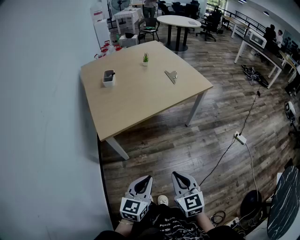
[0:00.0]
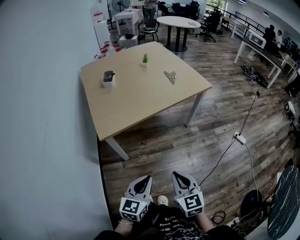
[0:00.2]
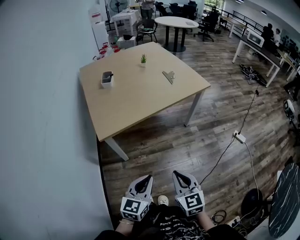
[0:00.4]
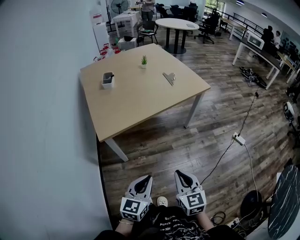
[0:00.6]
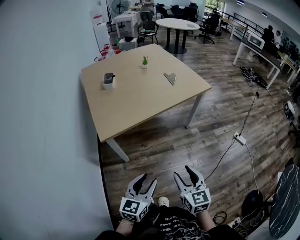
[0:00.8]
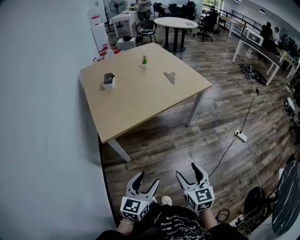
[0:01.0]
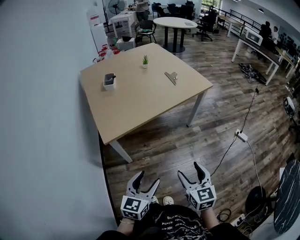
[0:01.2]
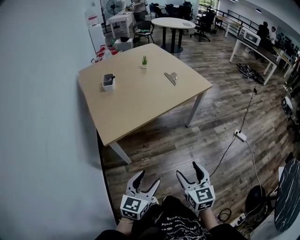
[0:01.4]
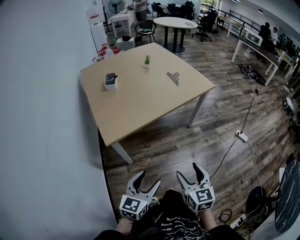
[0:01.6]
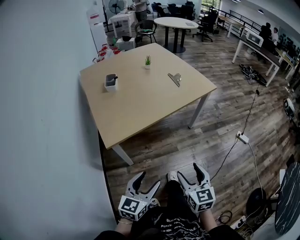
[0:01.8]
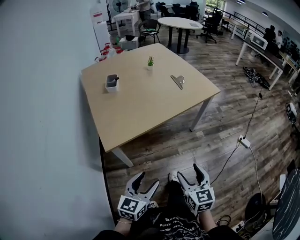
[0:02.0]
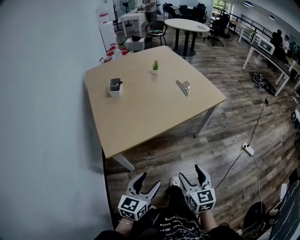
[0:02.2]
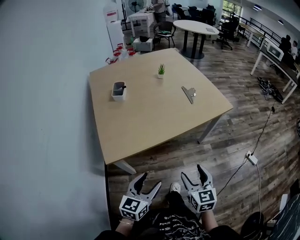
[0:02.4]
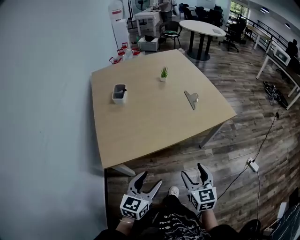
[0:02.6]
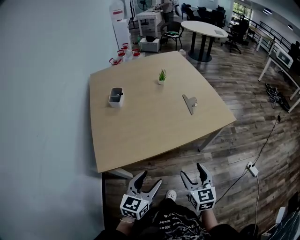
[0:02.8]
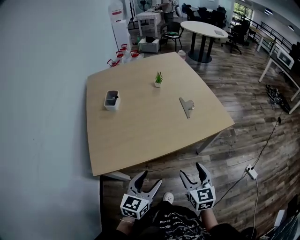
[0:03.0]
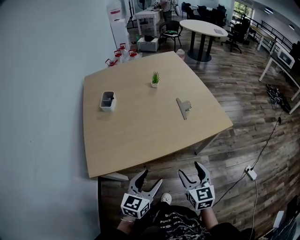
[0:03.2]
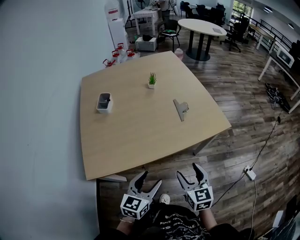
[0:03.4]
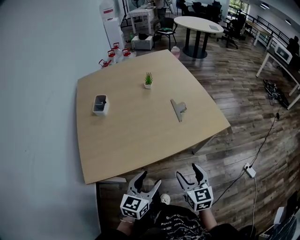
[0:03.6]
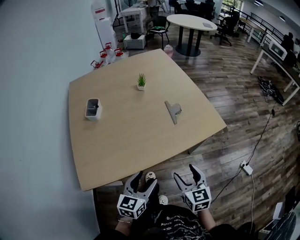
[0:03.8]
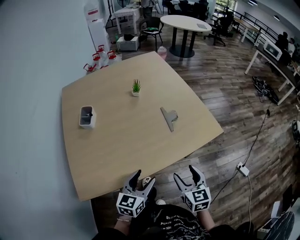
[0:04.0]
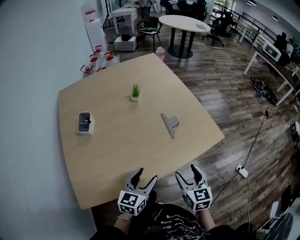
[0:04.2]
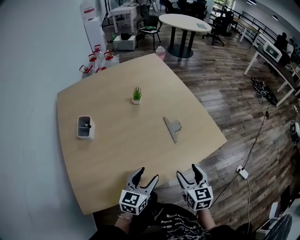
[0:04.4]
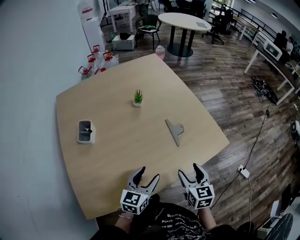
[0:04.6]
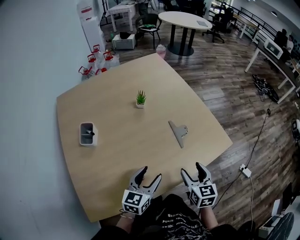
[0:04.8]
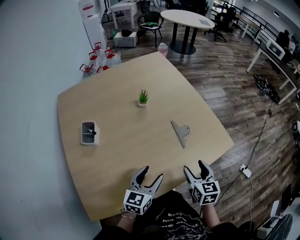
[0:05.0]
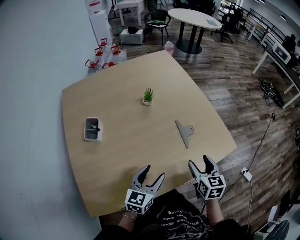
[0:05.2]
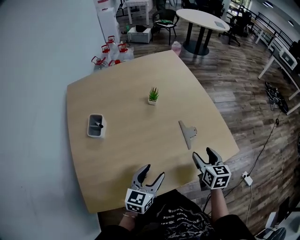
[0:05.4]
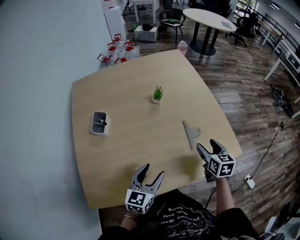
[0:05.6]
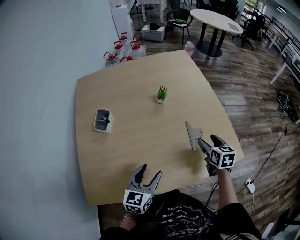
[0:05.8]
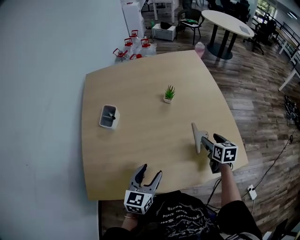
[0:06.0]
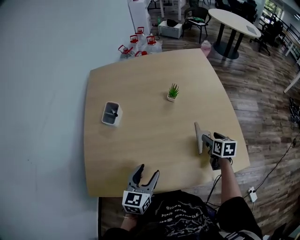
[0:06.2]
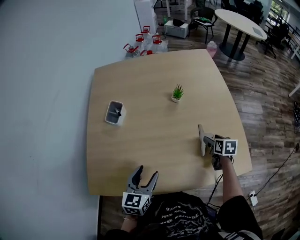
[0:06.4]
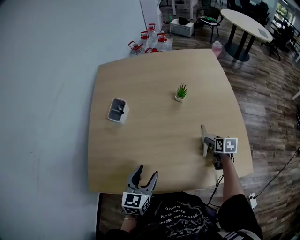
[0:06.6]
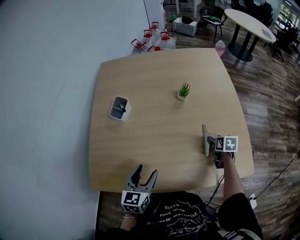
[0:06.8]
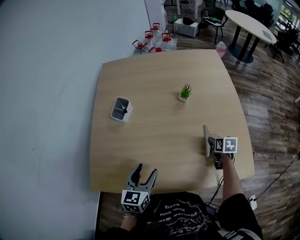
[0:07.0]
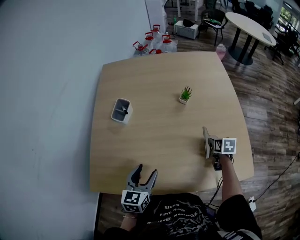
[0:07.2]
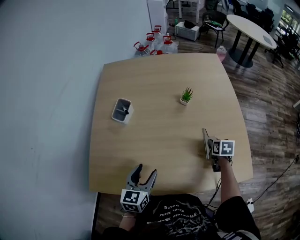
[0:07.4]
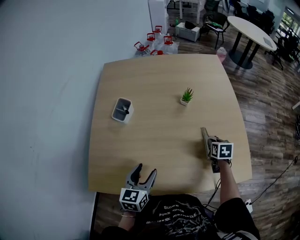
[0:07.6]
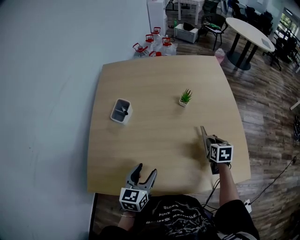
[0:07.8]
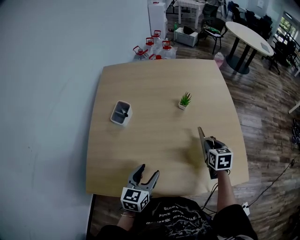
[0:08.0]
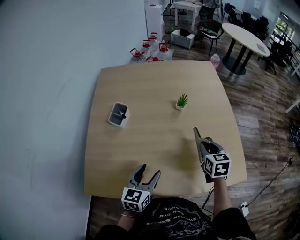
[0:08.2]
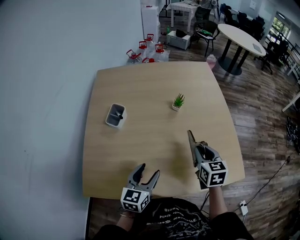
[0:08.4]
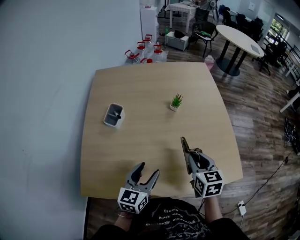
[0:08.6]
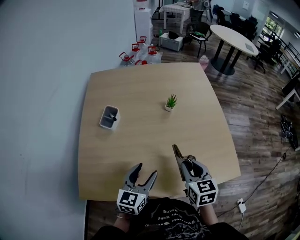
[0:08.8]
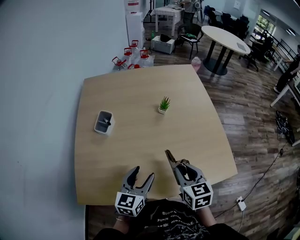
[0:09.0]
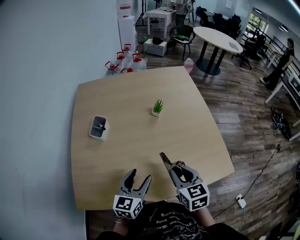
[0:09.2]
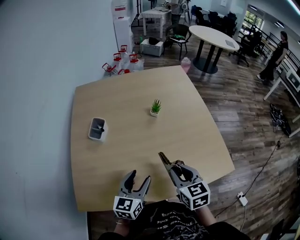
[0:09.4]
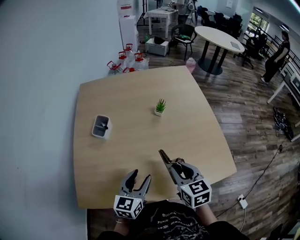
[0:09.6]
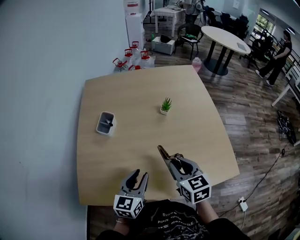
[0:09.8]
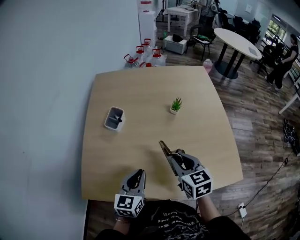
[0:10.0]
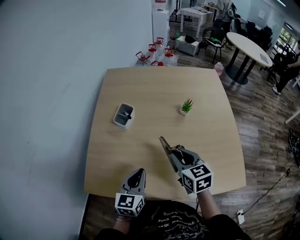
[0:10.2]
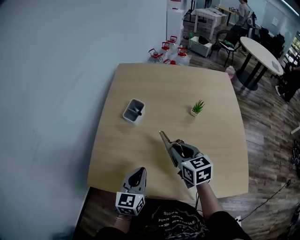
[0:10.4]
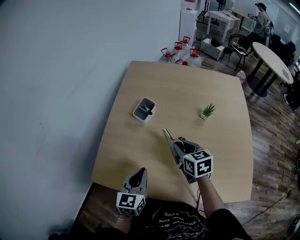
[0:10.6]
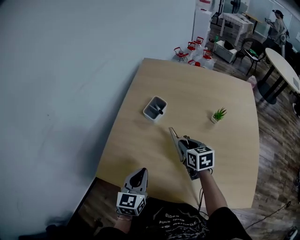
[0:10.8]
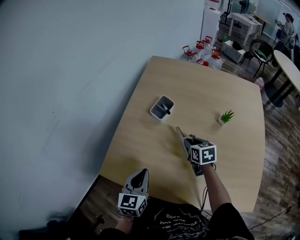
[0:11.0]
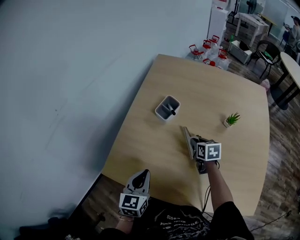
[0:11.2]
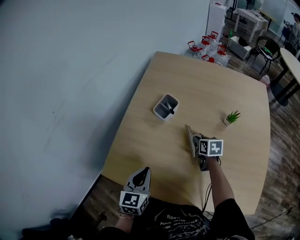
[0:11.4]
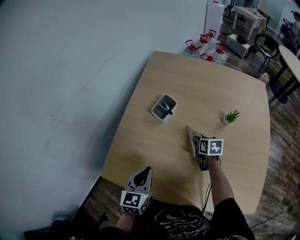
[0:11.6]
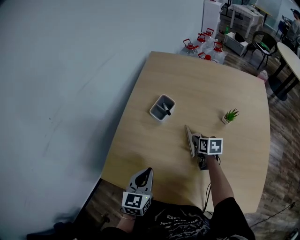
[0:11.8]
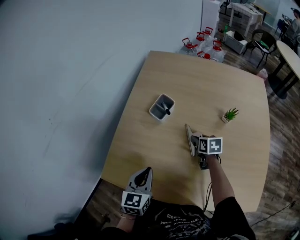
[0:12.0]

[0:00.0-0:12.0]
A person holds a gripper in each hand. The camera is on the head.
0:00.0 to 0:01.6: The left gripper moves to the left, roughly 5 cm, and opens its fingers. Meanwhile the right gripper opens its fingers.
0:01.6 to 0:03.0: Both grippers travel together forward, about 30 cm.
0:03.0 to 0:04.4: The two grippers go about 20 cm forward.
0:04.4 to 0:06.0: The right gripper moves forward, some 25 cm. Meanwhile the left gripper travels to the left by roughly 5 cm, and swivels roughly 20 degrees.
0:06.0 to 0:07.6: The left gripper is displaced to the left by about 5 cm. Meanwhile the right gripper heads downward, covering about 5 cm, and closes up.
0:07.6 to 0:09.0: The left gripper travels to the right by some 5 cm, while the right gripper moves backward, upward and to the left, approximately 25 cm, and rotates roughly 20 degrees.
0:09.0 to 0:10.4: The left gripper shifts approximately 10 cm to the left, and closes its fingers, while the right gripper travels to the left and forward by roughly 15 cm, and changes its angle by some 20 degrees.
0:10.4 to 0:12.0: The left gripper heads to the left, covering approximately 5 cm. The right gripper goes approximately 20 cm downward and forward, and rotates roughly 20 degrees.

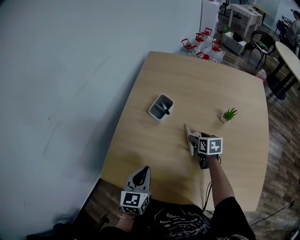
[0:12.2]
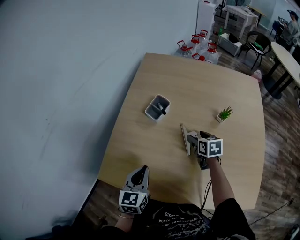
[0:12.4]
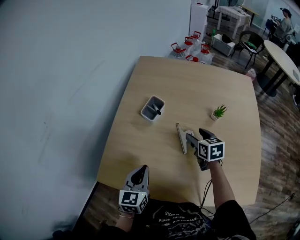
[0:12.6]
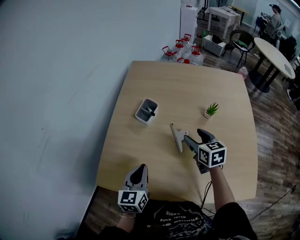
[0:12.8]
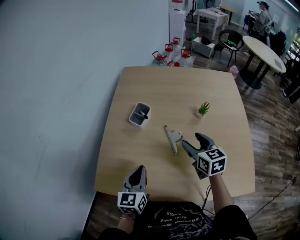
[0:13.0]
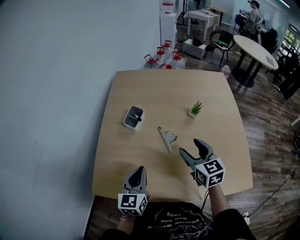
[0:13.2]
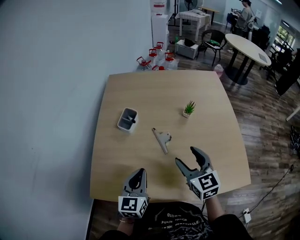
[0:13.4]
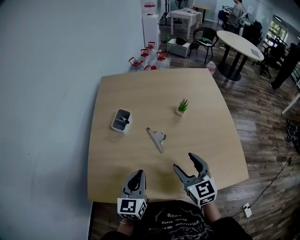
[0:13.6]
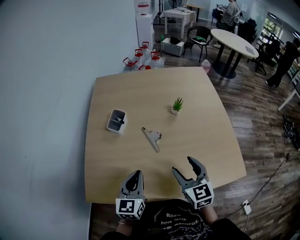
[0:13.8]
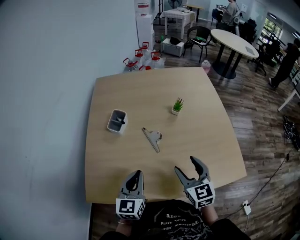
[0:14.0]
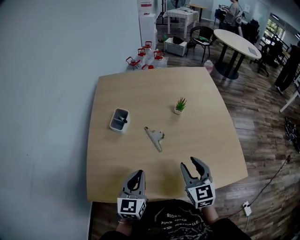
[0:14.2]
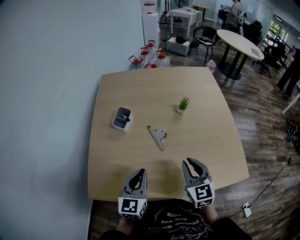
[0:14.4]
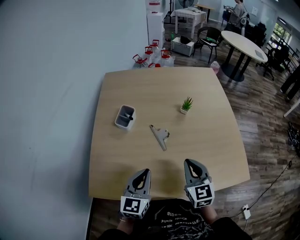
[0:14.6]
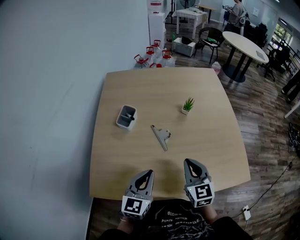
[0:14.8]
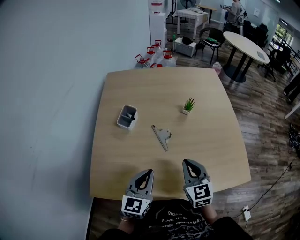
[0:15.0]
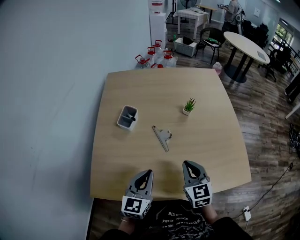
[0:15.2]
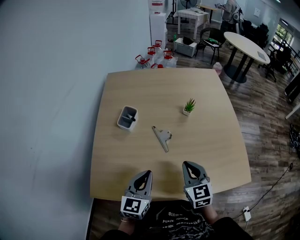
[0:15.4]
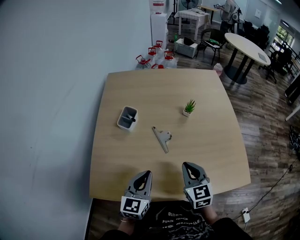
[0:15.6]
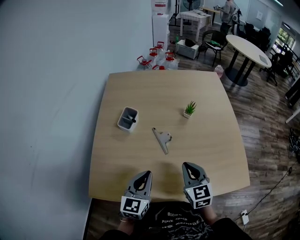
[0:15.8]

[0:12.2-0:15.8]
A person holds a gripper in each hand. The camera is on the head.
0:12.2 to 0:14.0: The right gripper is displaced backward and upward by some 30 cm, and rotates roughly 40 degrees. The left gripper shifts some 10 cm to the right, and turns by roughly 20 degrees.
0:14.0 to 0:15.8: The right gripper closes its fingers.

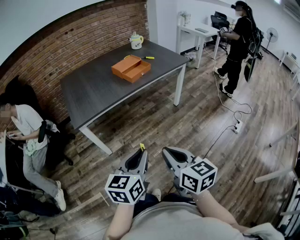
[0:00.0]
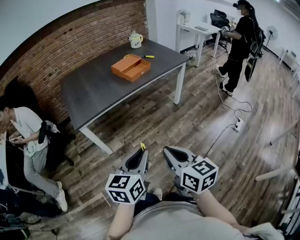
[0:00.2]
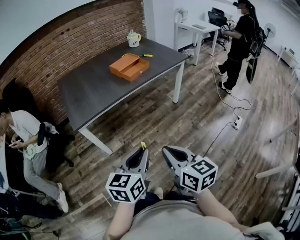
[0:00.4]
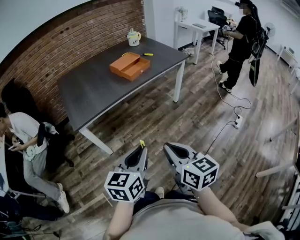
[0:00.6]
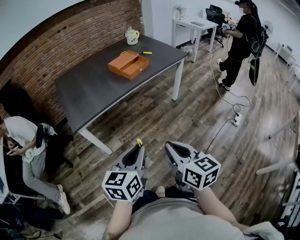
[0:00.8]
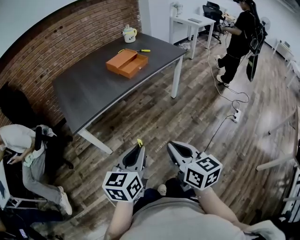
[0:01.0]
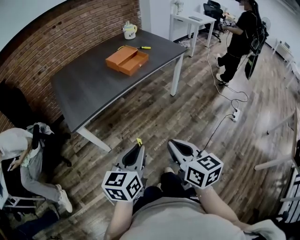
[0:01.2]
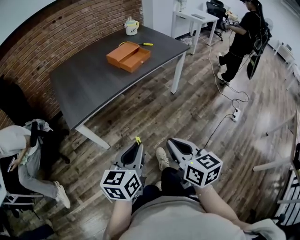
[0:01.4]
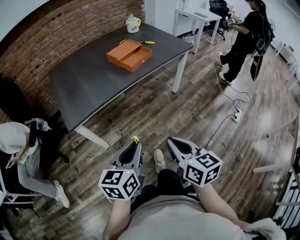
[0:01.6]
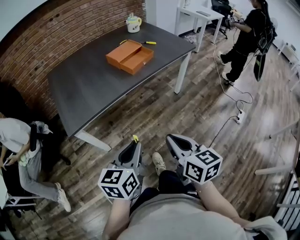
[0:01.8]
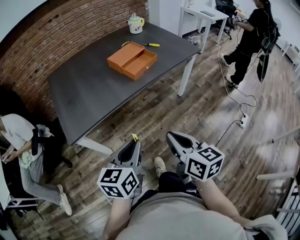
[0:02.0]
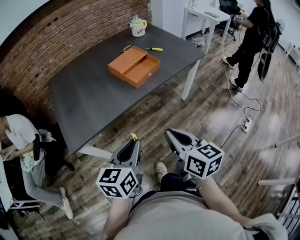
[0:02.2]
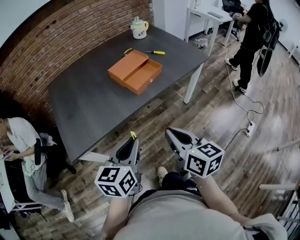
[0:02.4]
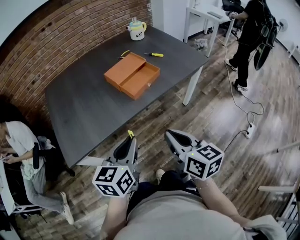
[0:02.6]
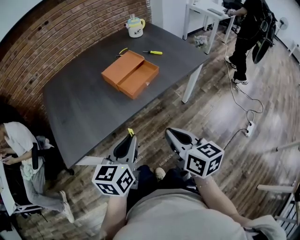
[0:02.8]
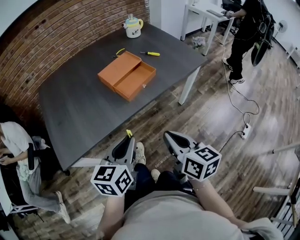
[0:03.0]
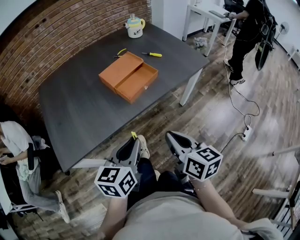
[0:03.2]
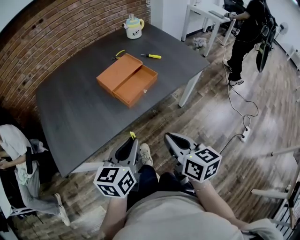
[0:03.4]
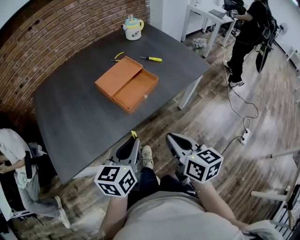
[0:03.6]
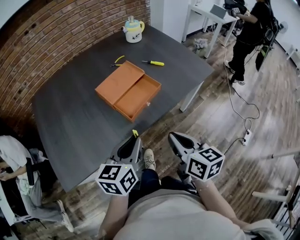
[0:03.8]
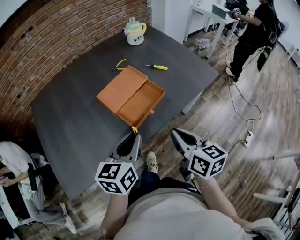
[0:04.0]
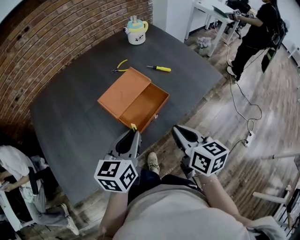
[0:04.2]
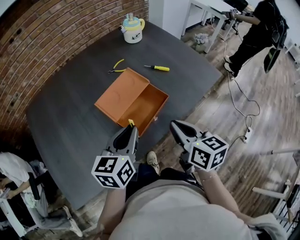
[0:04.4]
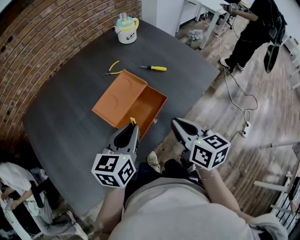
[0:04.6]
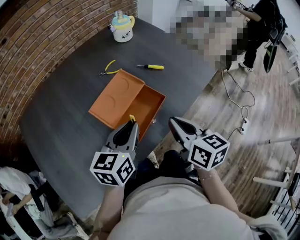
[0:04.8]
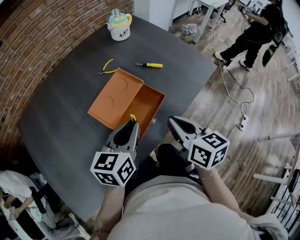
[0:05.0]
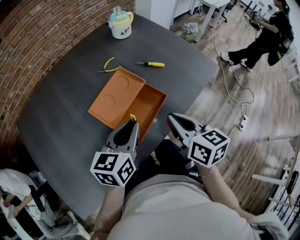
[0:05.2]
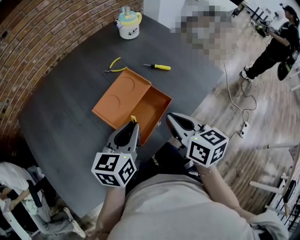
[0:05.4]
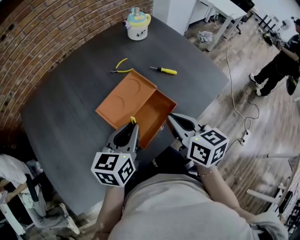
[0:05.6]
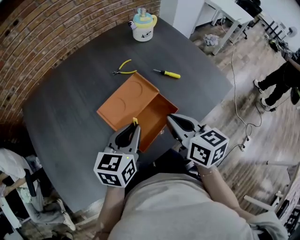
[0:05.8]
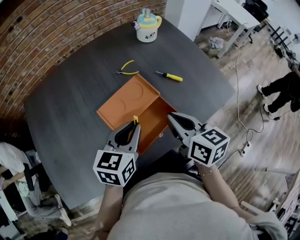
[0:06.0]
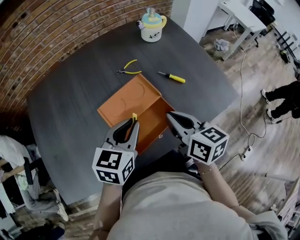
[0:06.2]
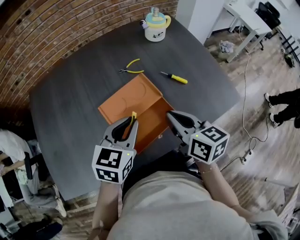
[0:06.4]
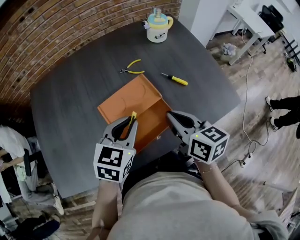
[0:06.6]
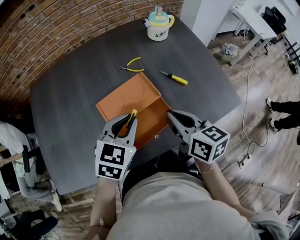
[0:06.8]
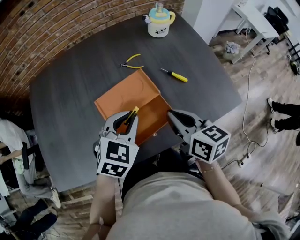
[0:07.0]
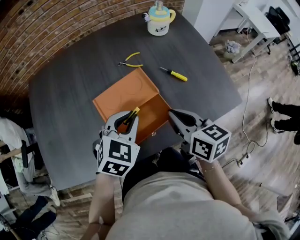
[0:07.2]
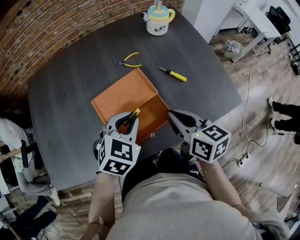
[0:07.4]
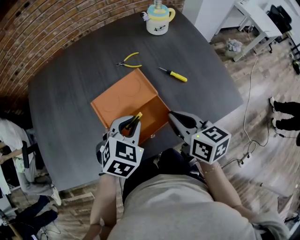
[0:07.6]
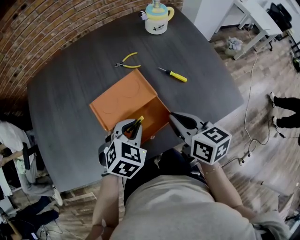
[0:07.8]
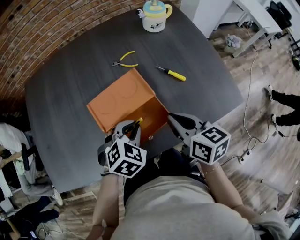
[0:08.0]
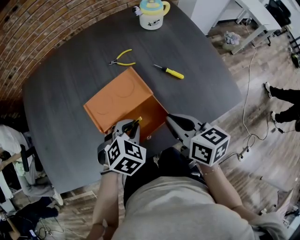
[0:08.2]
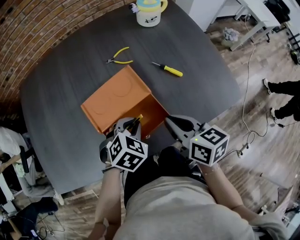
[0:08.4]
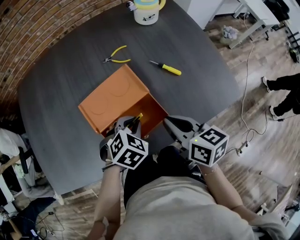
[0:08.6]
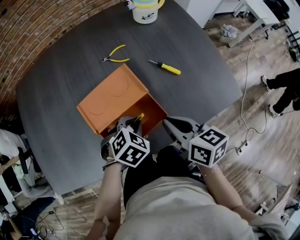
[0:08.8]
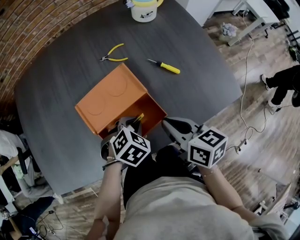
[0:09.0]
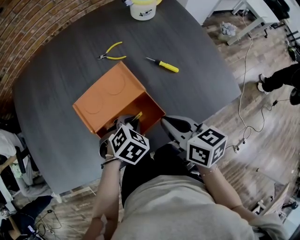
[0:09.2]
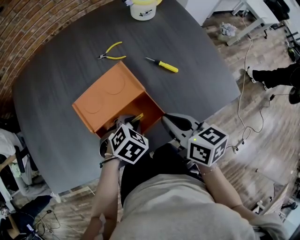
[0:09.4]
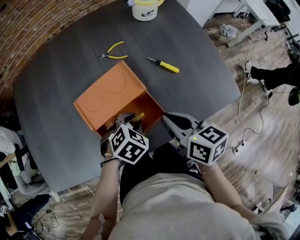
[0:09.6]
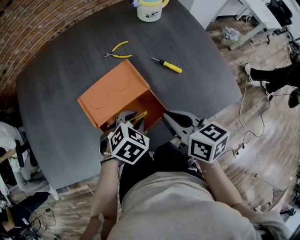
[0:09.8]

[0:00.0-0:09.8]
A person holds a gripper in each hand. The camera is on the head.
0:00.0 to 0:01.4: The left gripper travels forward and to the left by roughly 10 cm, while the right gripper is displaced forward by approximately 5 cm.
0:01.4 to 0:02.8: Both grippers travel together forward, roughly 30 cm.
0:02.8 to 0:04.2: The two grippers go some 25 cm forward.
0:04.2 to 0:05.6: Both grippers travel together forward, about 10 cm.
0:05.6 to 0:07.0: The left gripper moves roughly 5 cm, and turns by some 30 degrees. Meanwhile the right gripper moves about 5 cm.
0:07.0 to 0:08.4: The left gripper travels downward by approximately 10 cm, and turns by about 20 degrees.
0:08.4 to 0:09.8: The grippers make only small movements.
